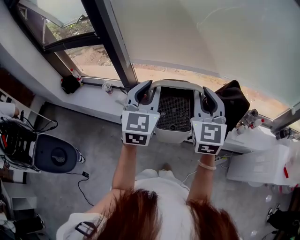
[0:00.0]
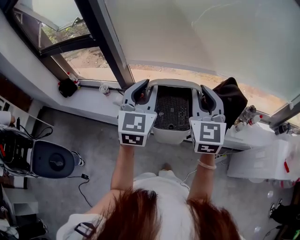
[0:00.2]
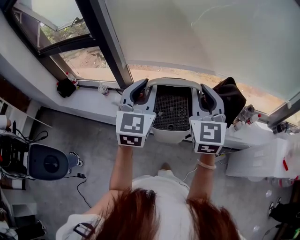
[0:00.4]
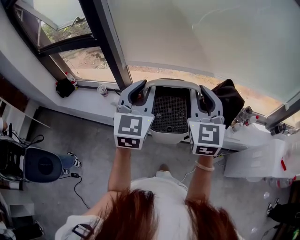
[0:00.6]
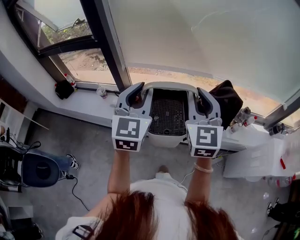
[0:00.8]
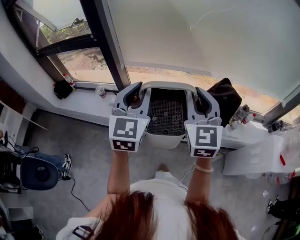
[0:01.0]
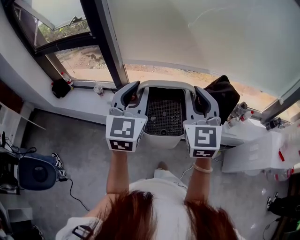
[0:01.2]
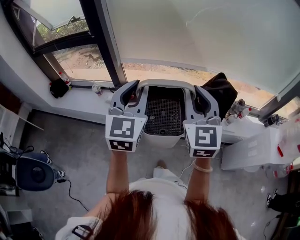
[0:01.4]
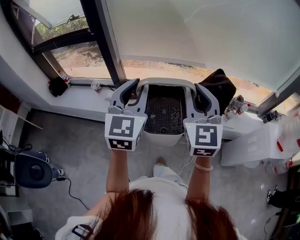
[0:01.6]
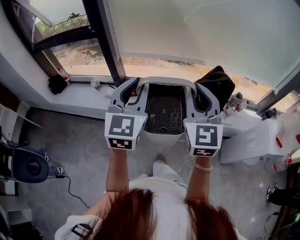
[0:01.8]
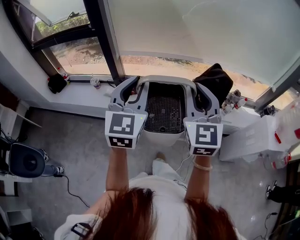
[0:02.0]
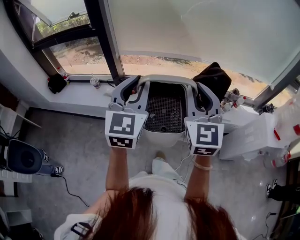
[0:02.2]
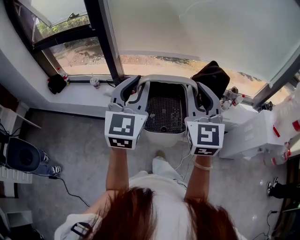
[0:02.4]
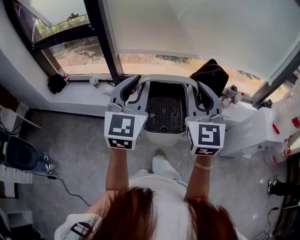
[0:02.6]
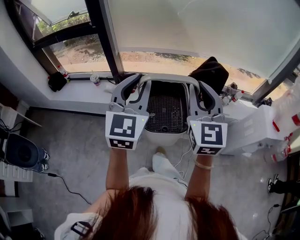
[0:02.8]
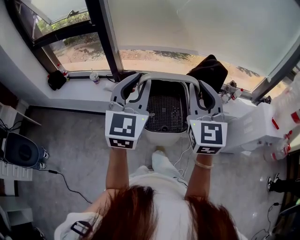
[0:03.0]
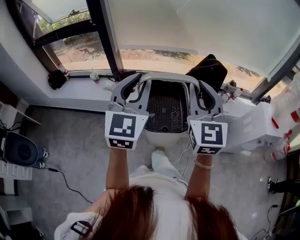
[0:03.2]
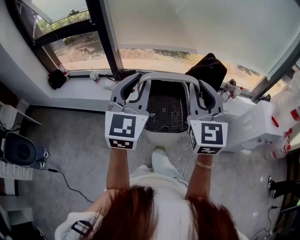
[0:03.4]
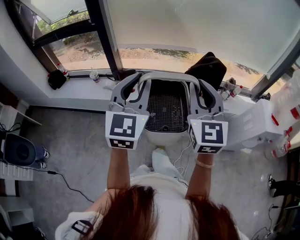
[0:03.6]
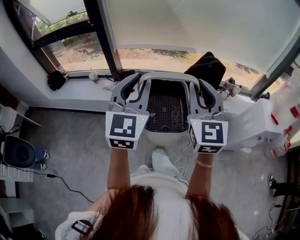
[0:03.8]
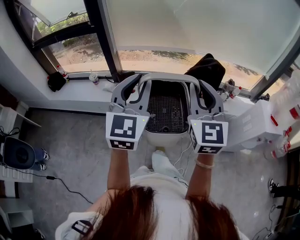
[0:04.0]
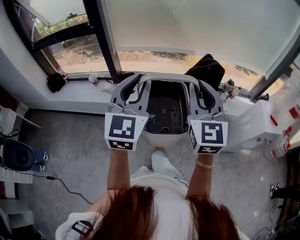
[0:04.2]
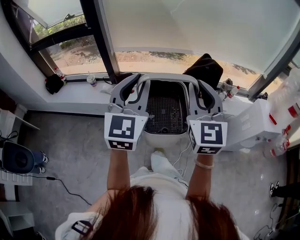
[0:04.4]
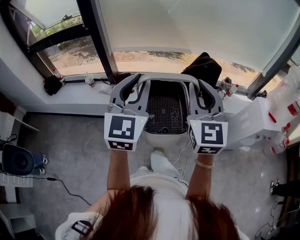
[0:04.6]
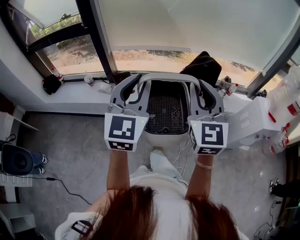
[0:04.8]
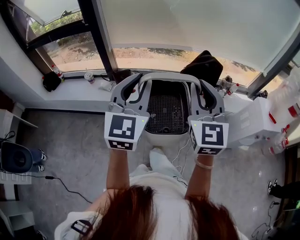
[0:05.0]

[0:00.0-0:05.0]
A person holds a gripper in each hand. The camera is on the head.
0:00.0 to 0:01.6: The grippers both shift backward by roughly 10 cm.
0:01.6 to 0:03.4: Both grippers travel together backward, approximately 15 cm.
0:03.4 to 0:05.0: The grippers move only a little.

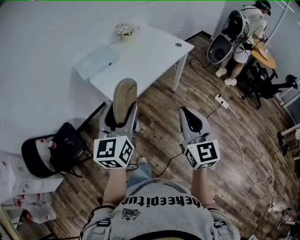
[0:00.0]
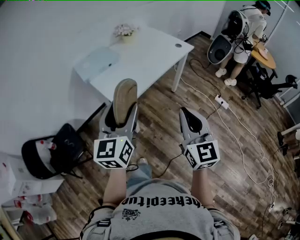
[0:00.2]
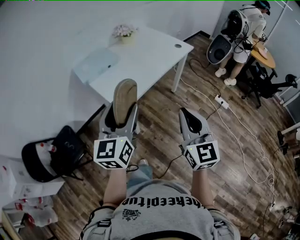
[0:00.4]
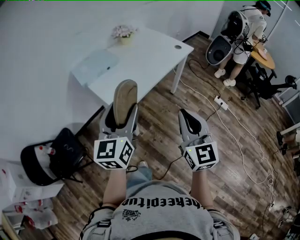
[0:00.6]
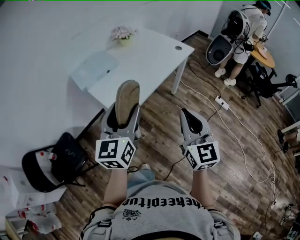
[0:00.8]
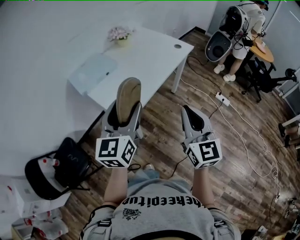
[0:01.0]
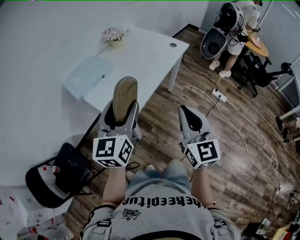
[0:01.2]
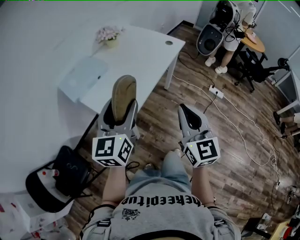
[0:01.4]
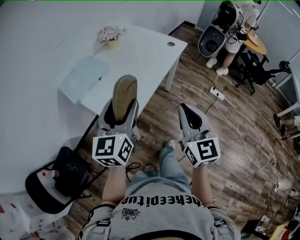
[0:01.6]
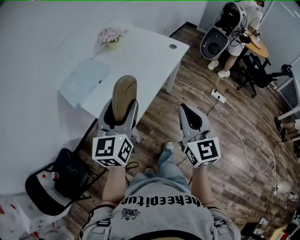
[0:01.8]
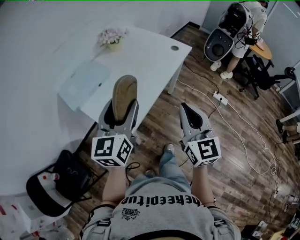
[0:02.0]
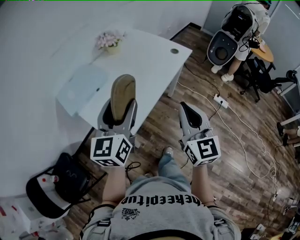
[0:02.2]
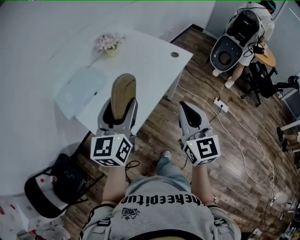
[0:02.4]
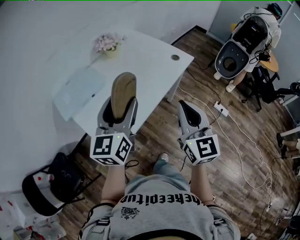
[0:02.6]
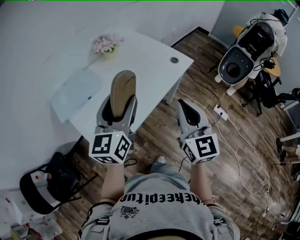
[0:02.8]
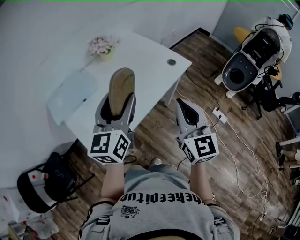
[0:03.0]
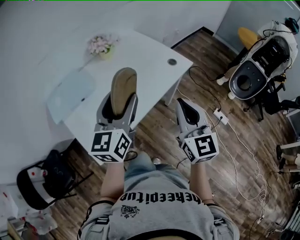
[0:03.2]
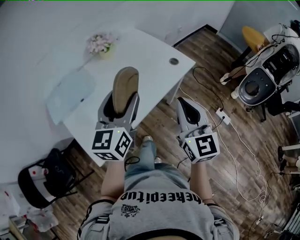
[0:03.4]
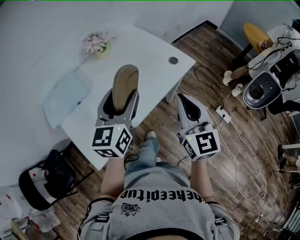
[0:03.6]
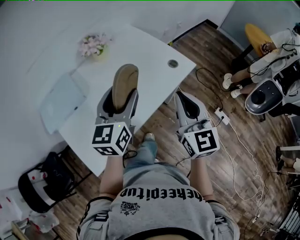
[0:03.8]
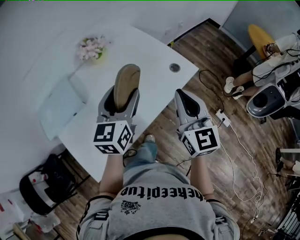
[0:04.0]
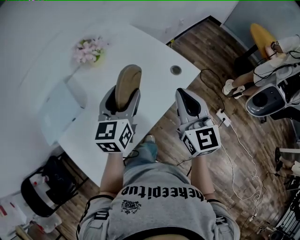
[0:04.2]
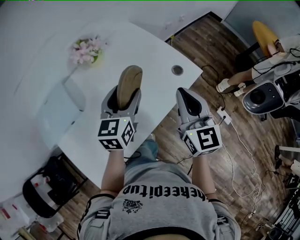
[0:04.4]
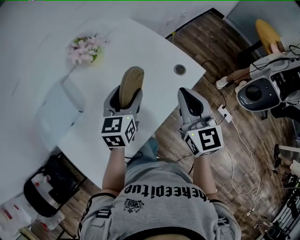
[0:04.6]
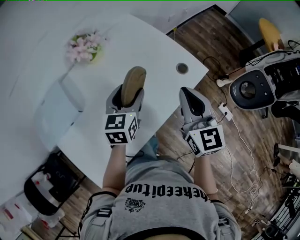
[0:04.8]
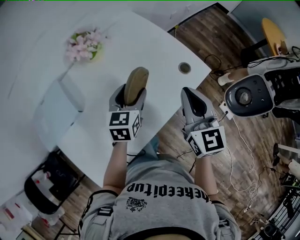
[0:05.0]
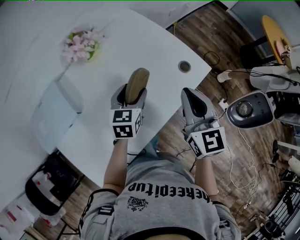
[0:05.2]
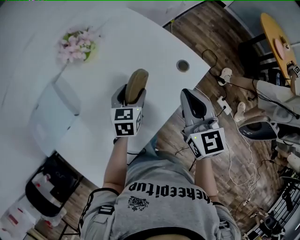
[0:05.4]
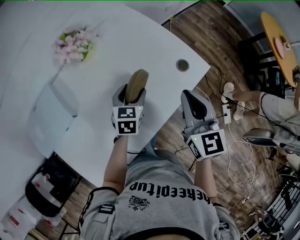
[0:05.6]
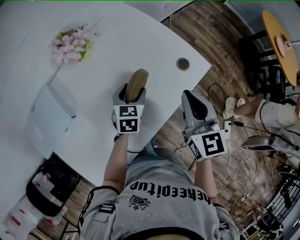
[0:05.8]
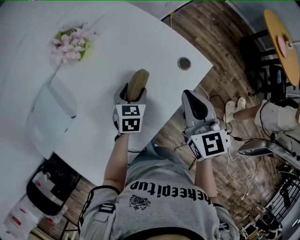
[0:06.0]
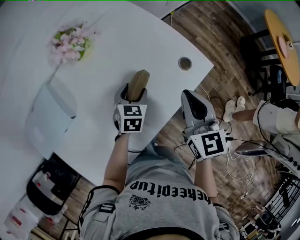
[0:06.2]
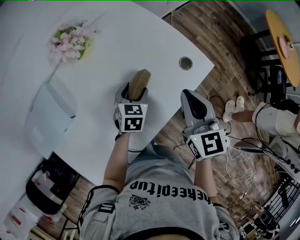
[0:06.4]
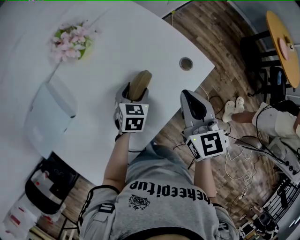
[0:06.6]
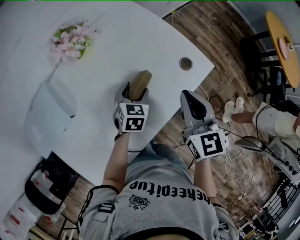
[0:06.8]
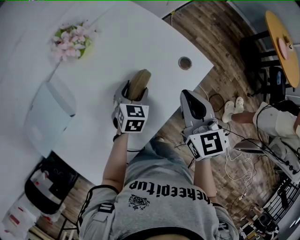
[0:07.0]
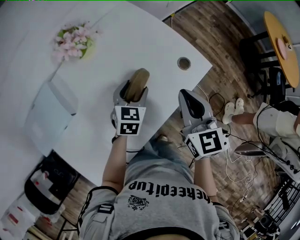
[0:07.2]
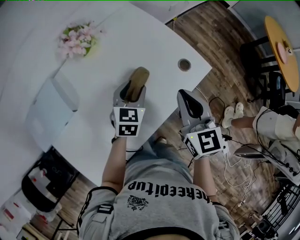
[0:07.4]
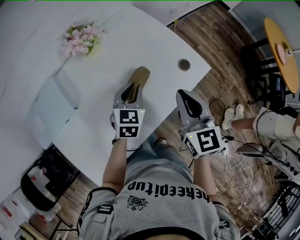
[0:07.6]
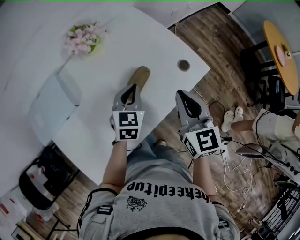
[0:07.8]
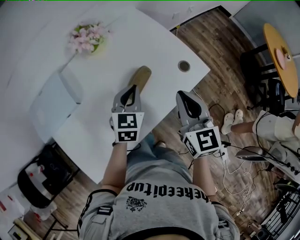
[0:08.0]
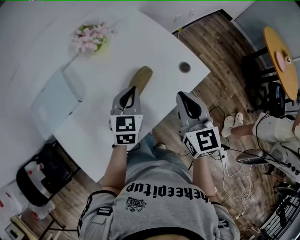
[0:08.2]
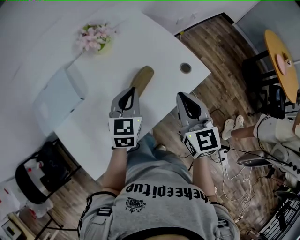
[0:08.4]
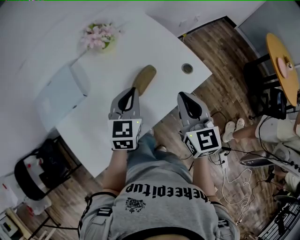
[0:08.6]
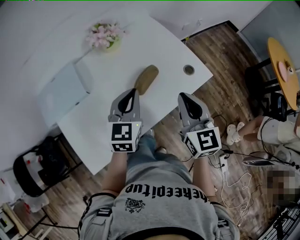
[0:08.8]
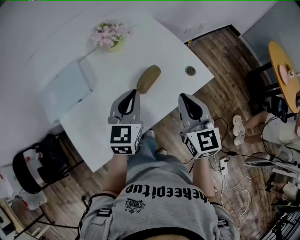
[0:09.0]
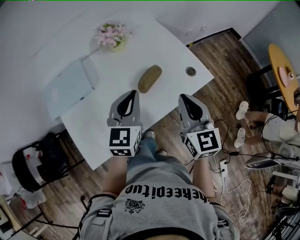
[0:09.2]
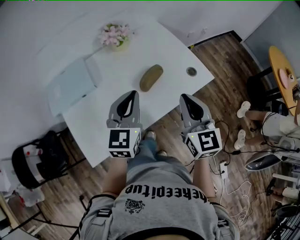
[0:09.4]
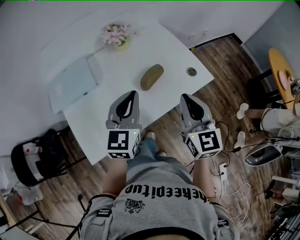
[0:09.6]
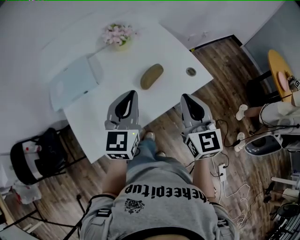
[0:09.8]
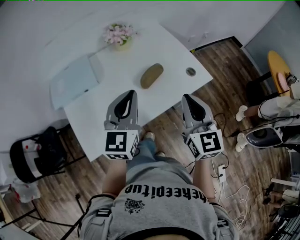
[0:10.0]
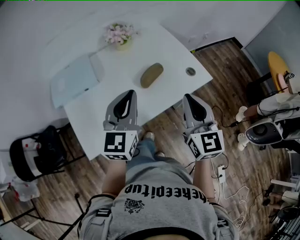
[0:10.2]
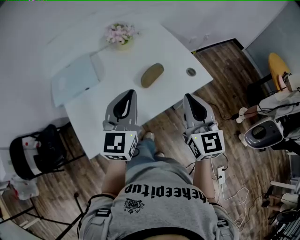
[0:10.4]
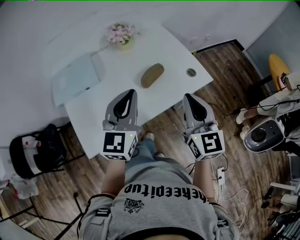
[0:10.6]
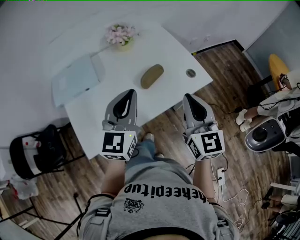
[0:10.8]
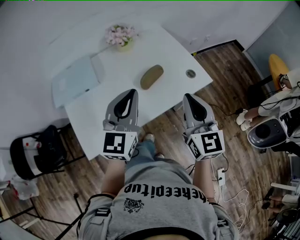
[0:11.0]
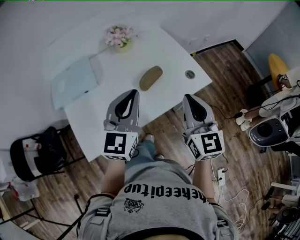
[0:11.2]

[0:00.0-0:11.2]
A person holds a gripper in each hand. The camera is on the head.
0:00.0 to 0:01.6: Both grippers move forward, about 15 cm.
0:01.6 to 0:03.2: Both grippers move forward and to the right, approximately 25 cm.
0:03.2 to 0:04.8: The left gripper goes some 30 cm forward and downward, and rotates roughly 30 degrees; the right gripper moves forward, roughly 25 cm.
0:04.8 to 0:06.4: The right gripper travels downward by about 5 cm. Meanwhile the left gripper travels downward by some 15 cm, and changes its angle by some 20 degrees.
0:06.4 to 0:08.0: The left gripper goes approximately 10 cm upward and backward, and closes. Meanwhile the right gripper changes place by some 5 cm.
0:08.0 to 0:09.6: The left gripper travels backward and upward by roughly 20 cm, and rotates about 20 degrees. The right gripper moves backward, some 10 cm.
0:09.6 to 0:11.2: The grippers move only a little.

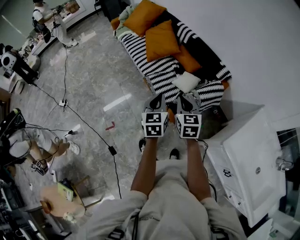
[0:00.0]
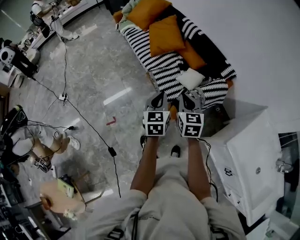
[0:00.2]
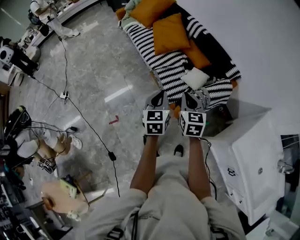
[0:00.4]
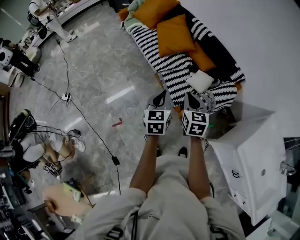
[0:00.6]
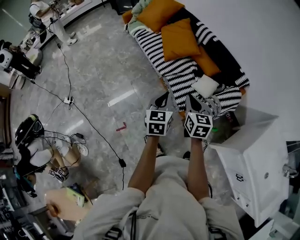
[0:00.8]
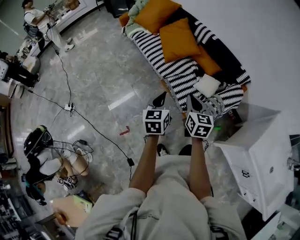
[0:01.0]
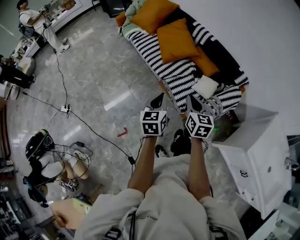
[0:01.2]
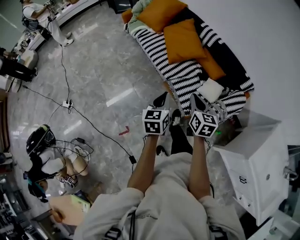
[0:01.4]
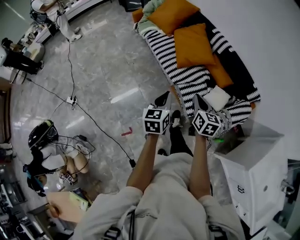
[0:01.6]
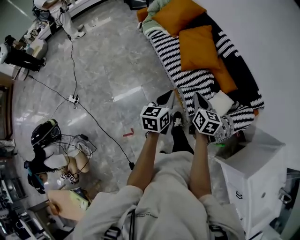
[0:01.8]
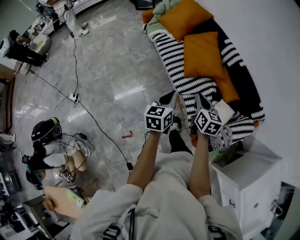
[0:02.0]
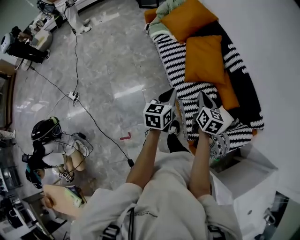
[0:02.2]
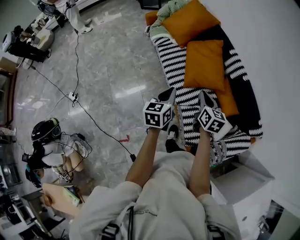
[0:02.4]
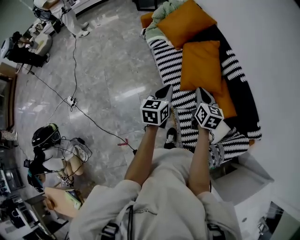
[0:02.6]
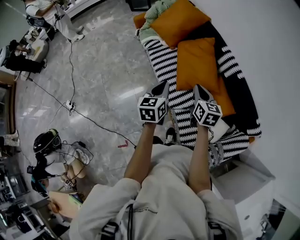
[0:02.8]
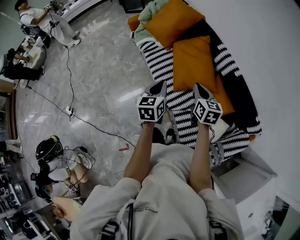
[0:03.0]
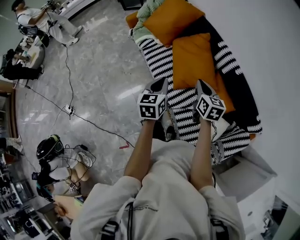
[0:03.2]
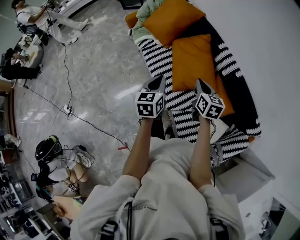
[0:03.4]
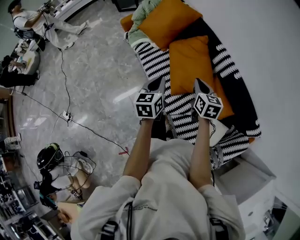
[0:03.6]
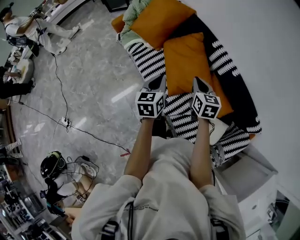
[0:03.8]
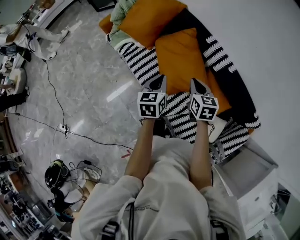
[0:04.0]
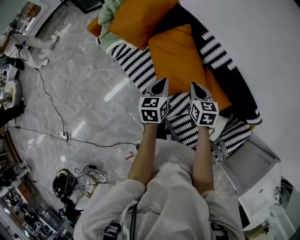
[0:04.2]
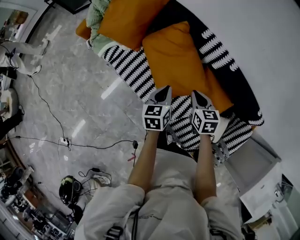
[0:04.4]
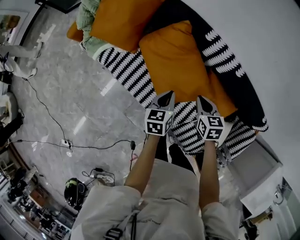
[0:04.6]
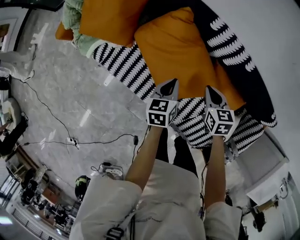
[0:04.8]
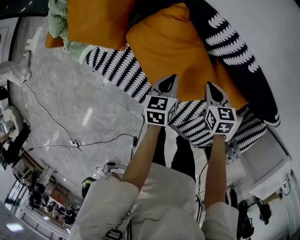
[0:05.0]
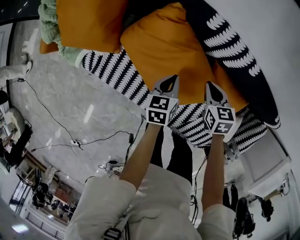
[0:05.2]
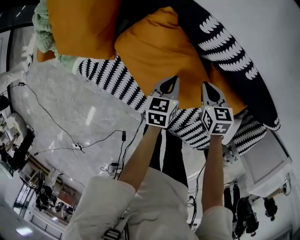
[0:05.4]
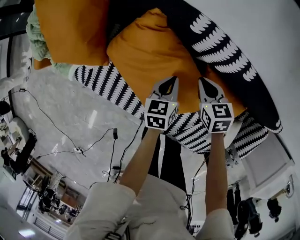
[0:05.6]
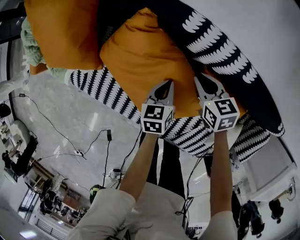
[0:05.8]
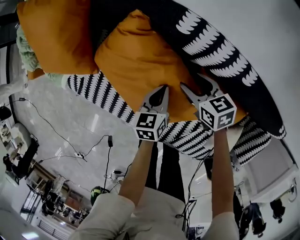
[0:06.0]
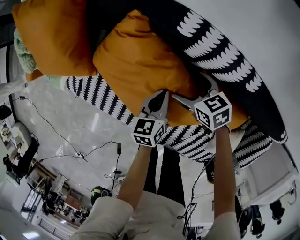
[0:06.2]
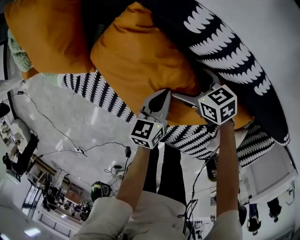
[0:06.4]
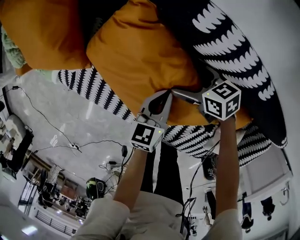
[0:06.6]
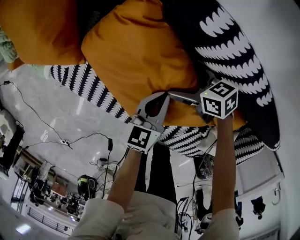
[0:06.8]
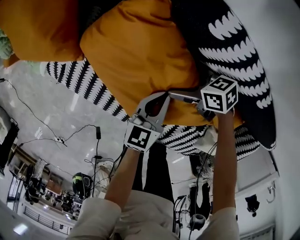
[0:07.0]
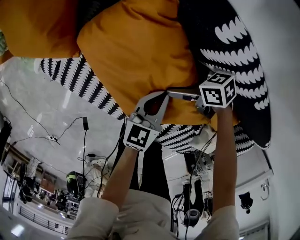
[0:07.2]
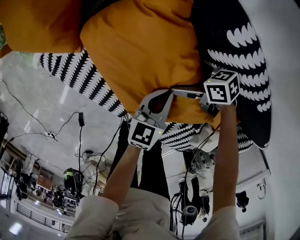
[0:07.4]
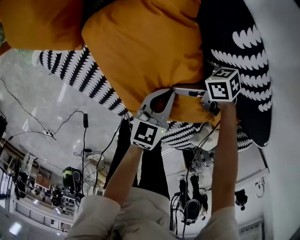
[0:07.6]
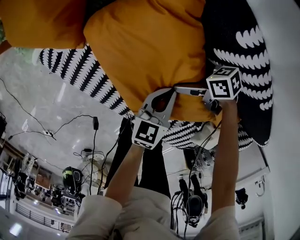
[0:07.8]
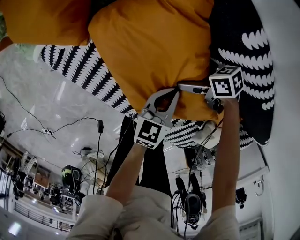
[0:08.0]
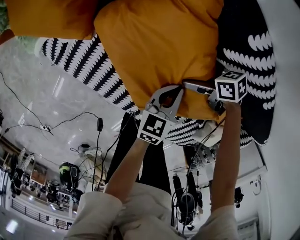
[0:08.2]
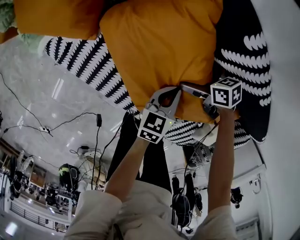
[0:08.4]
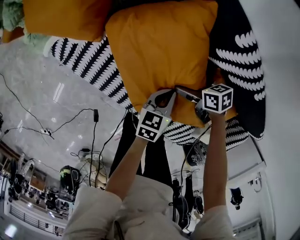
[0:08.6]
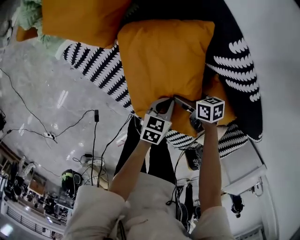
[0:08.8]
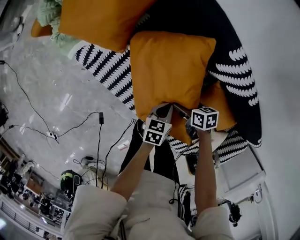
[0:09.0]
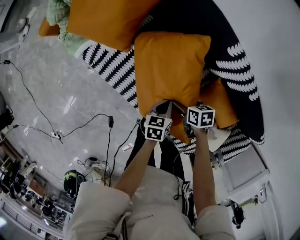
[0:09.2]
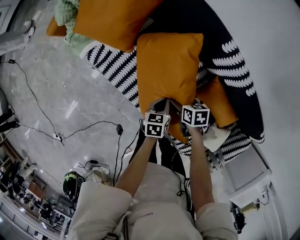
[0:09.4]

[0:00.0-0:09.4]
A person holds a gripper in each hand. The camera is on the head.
0:00.0 to 0:01.6: Both grippers travel together to the left and forward, some 30 cm.
0:01.6 to 0:03.2: The two grippers go some 40 cm forward.
0:03.2 to 0:04.8: The left gripper shifts by about 40 cm, and swivels approximately 30 degrees. The right gripper shifts by about 35 cm, and turns by some 30 degrees.
0:04.8 to 0:06.2: The left gripper is displaced downward, to the right and forward by approximately 20 cm. Meanwhile the right gripper goes some 20 cm downward and forward, rotates about 20 degrees, and opens its fingers.
0:06.2 to 0:07.8: The right gripper travels downward by about 10 cm, and changes its angle by some 40 degrees.
0:07.8 to 0:09.4: The right gripper ends up about 15 cm from where it was, changes its angle by about 30 degrees, and closes up. Meanwhile the left gripper changes place by some 15 cm, and rotates approximately 20 degrees.
